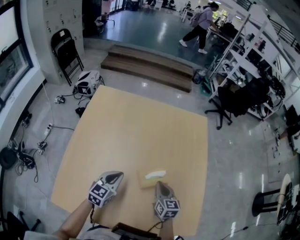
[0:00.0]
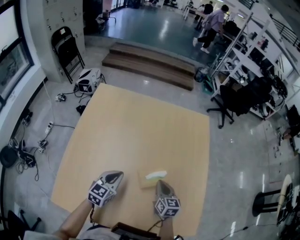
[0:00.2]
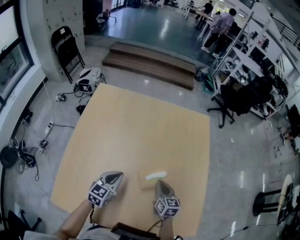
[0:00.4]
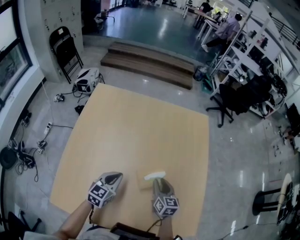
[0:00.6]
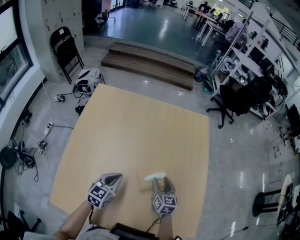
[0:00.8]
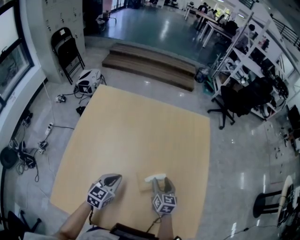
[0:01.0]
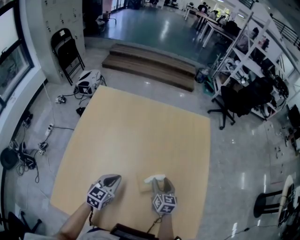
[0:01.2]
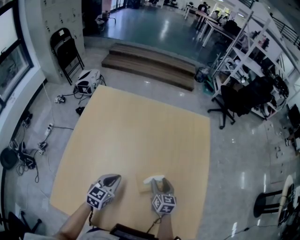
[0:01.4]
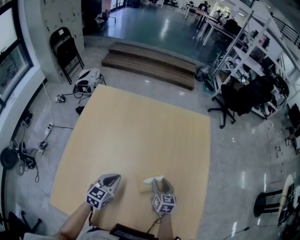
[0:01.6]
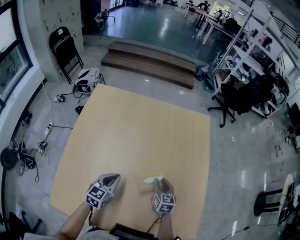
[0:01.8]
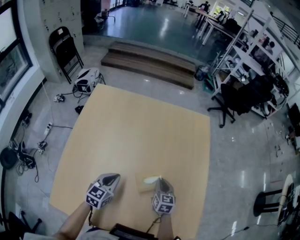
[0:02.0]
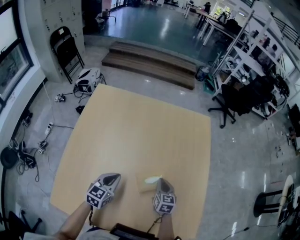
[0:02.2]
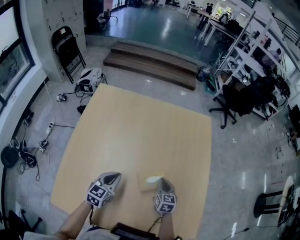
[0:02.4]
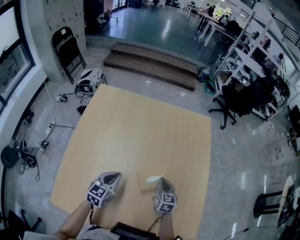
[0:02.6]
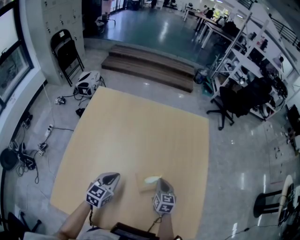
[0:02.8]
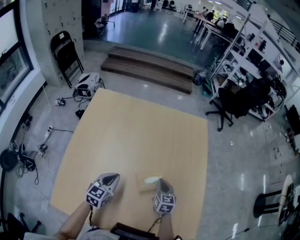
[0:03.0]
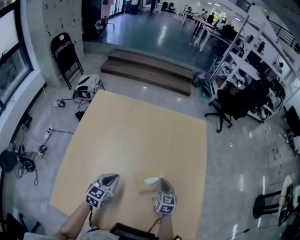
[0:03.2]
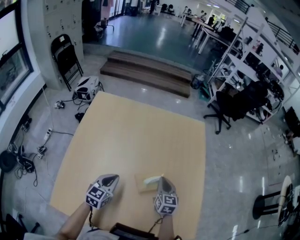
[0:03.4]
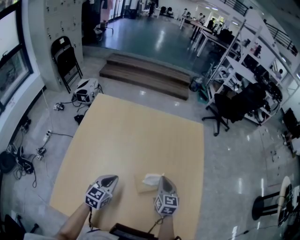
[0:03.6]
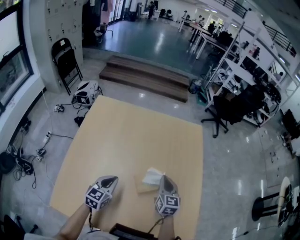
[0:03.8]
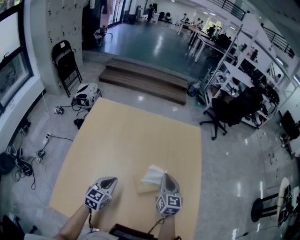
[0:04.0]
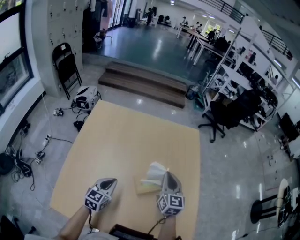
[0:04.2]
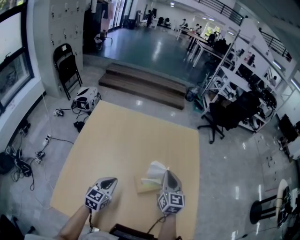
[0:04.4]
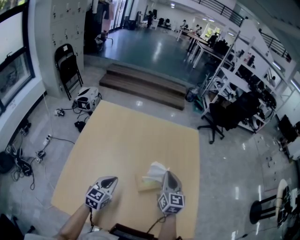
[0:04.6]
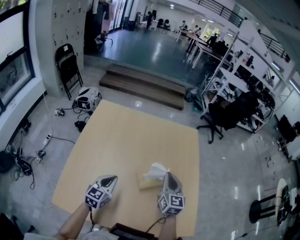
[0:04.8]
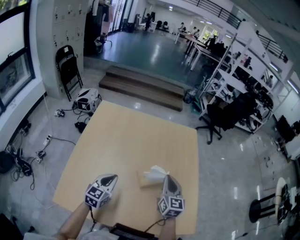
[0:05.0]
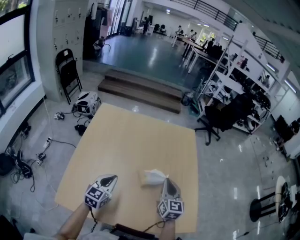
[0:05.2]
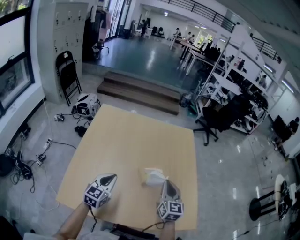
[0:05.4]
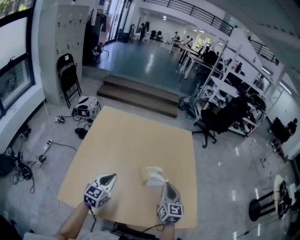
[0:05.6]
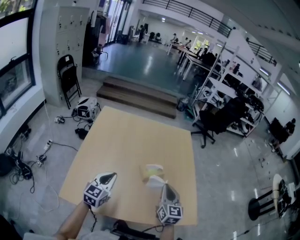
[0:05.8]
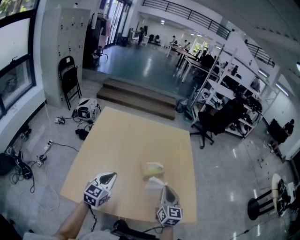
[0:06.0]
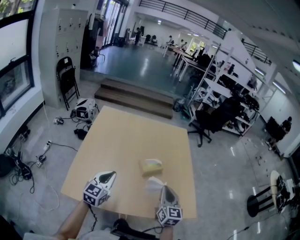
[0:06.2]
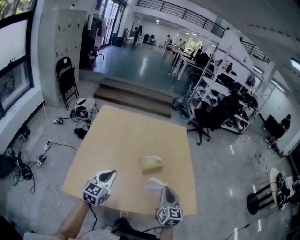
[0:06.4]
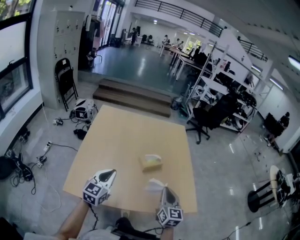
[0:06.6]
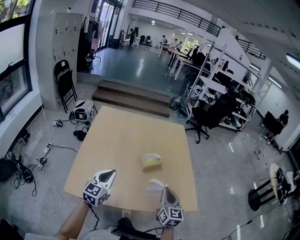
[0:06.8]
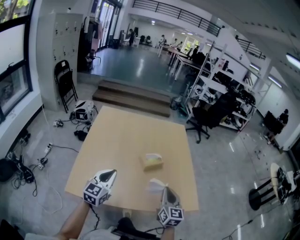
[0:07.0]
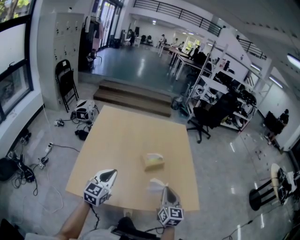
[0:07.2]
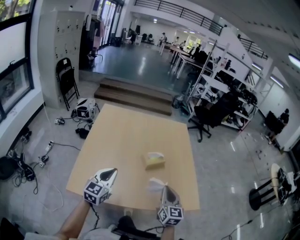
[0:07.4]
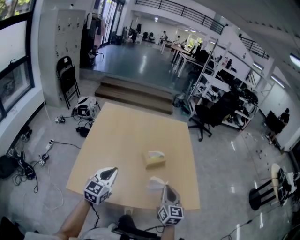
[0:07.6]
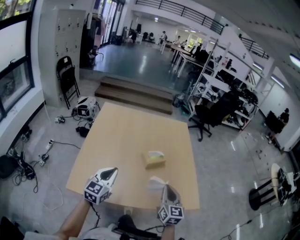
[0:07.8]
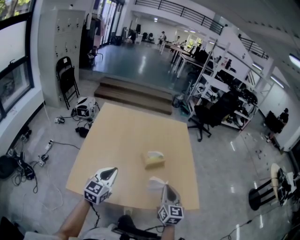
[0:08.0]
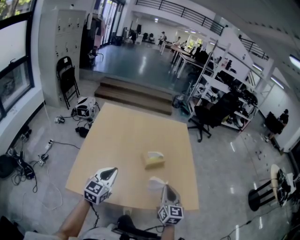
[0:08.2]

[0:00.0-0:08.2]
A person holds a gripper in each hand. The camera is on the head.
0:00.0 to 0:01.6: The right gripper heads downward, covering about 5 cm, and opens its fingers.
0:01.6 to 0:03.2: The right gripper closes.
0:03.2 to 0:05.0: The left gripper goes approximately 10 cm backward and upward. The right gripper travels upward by about 15 cm.
0:05.0 to 0:06.6: The left gripper moves backward and upward, roughly 15 cm. The right gripper goes some 20 cm backward.
0:06.6 to 0:08.2: The grippers stay close to where they were, moving slightly.

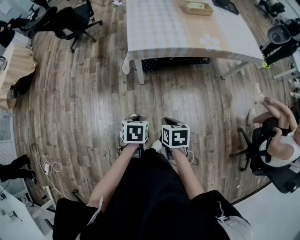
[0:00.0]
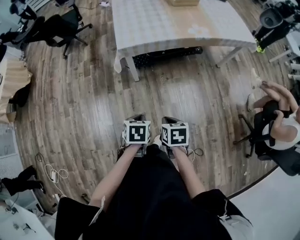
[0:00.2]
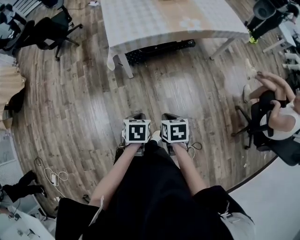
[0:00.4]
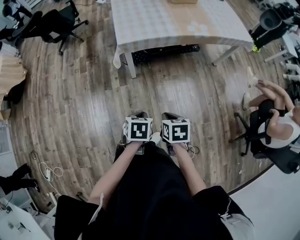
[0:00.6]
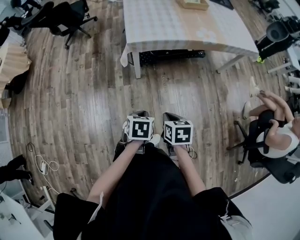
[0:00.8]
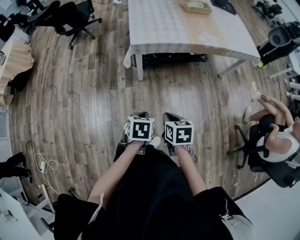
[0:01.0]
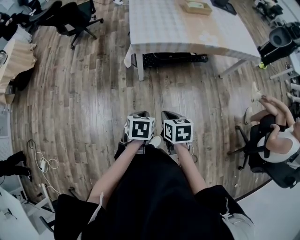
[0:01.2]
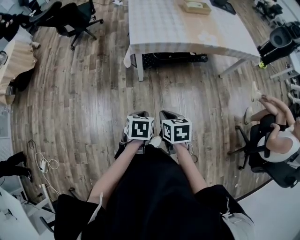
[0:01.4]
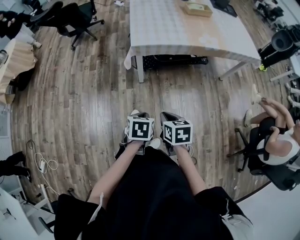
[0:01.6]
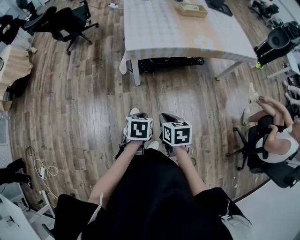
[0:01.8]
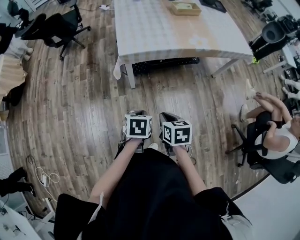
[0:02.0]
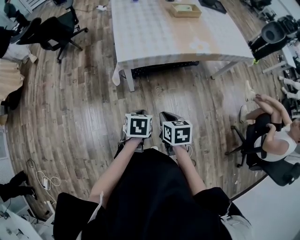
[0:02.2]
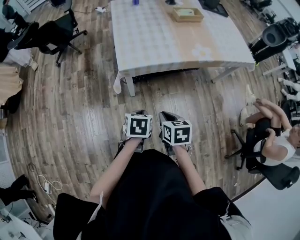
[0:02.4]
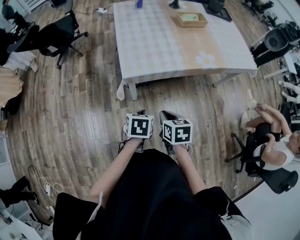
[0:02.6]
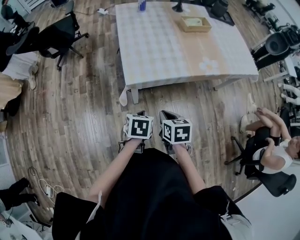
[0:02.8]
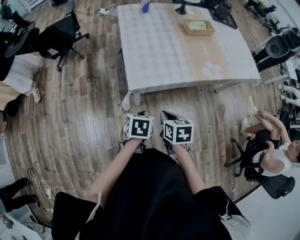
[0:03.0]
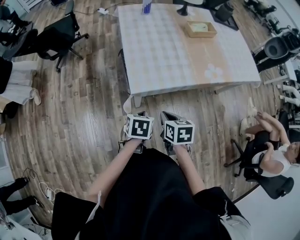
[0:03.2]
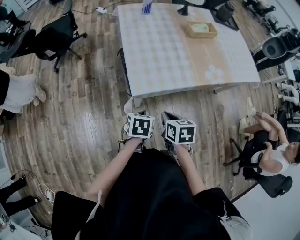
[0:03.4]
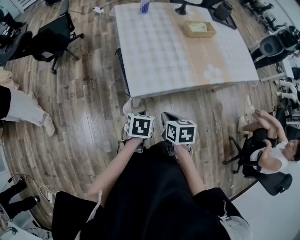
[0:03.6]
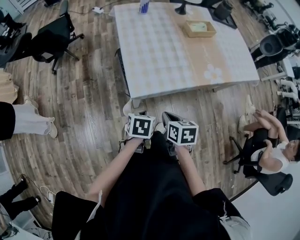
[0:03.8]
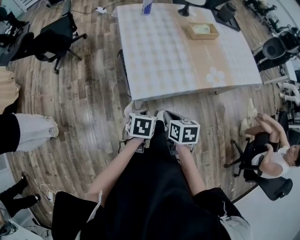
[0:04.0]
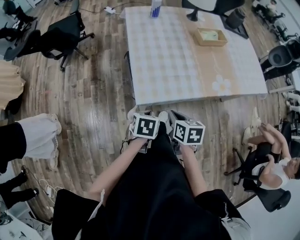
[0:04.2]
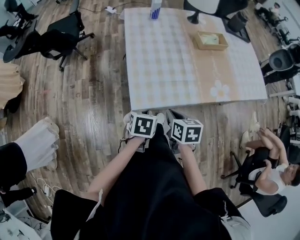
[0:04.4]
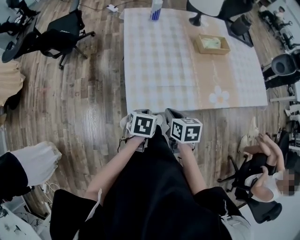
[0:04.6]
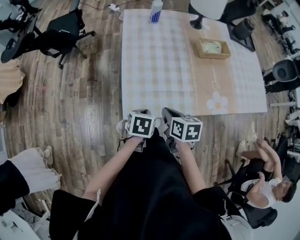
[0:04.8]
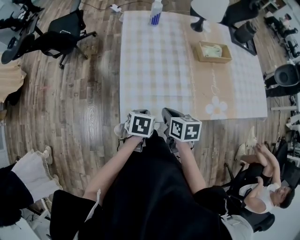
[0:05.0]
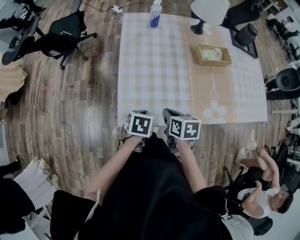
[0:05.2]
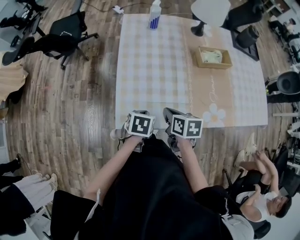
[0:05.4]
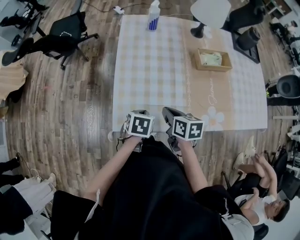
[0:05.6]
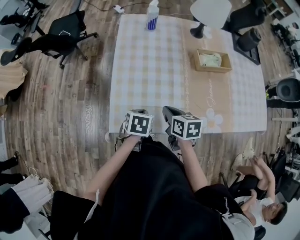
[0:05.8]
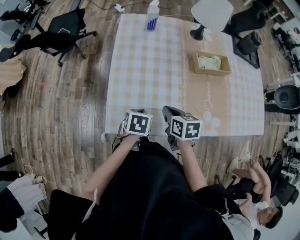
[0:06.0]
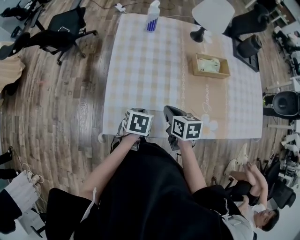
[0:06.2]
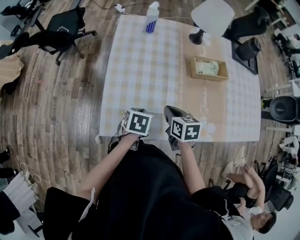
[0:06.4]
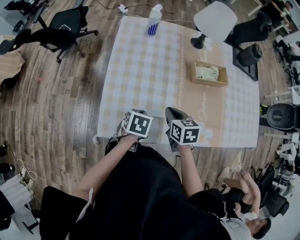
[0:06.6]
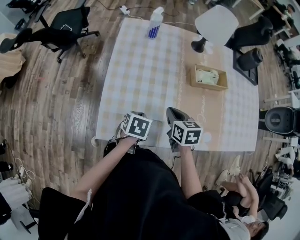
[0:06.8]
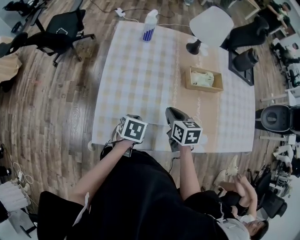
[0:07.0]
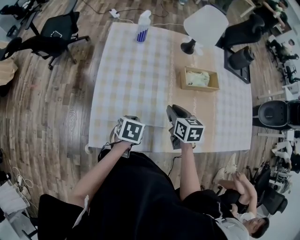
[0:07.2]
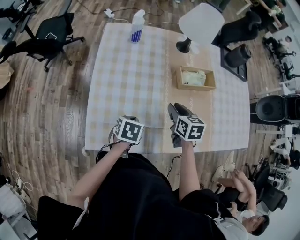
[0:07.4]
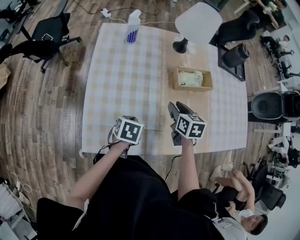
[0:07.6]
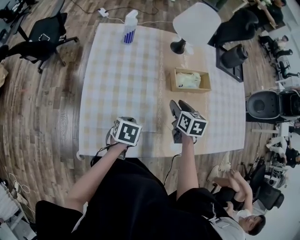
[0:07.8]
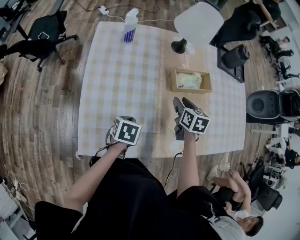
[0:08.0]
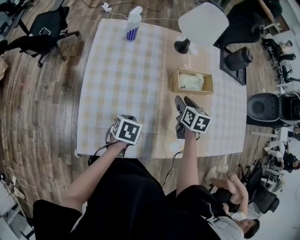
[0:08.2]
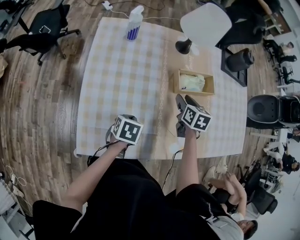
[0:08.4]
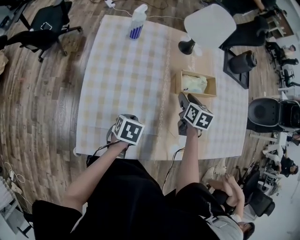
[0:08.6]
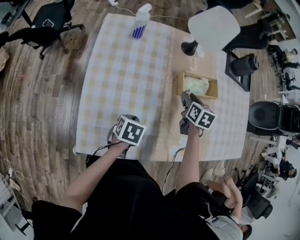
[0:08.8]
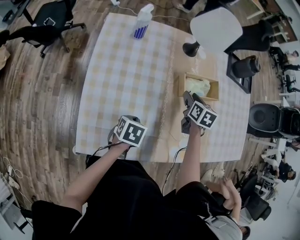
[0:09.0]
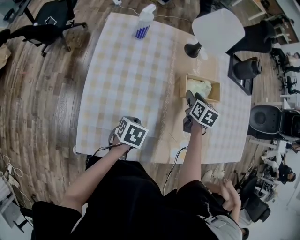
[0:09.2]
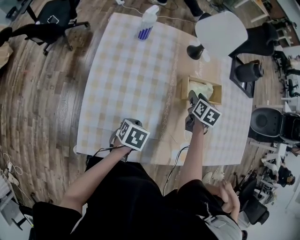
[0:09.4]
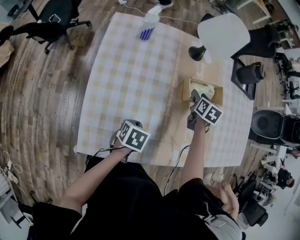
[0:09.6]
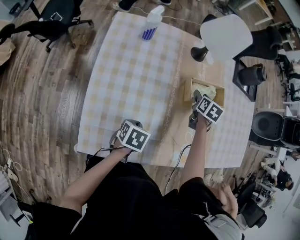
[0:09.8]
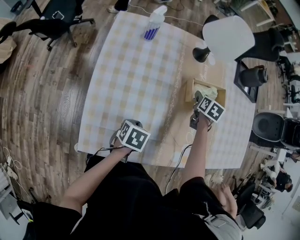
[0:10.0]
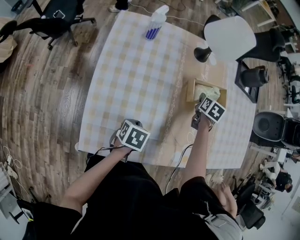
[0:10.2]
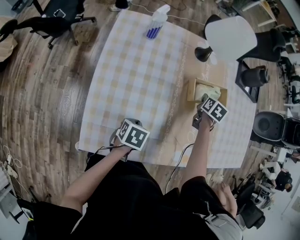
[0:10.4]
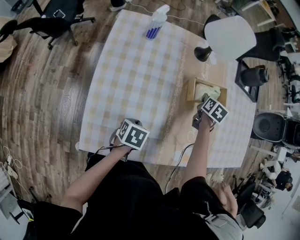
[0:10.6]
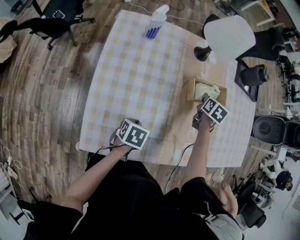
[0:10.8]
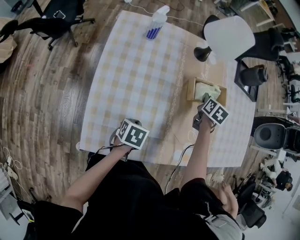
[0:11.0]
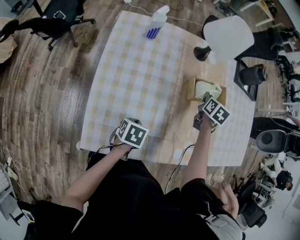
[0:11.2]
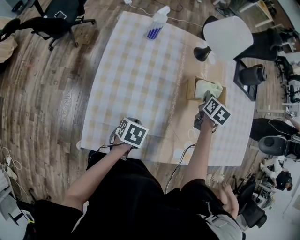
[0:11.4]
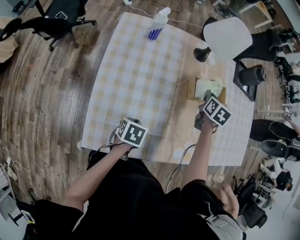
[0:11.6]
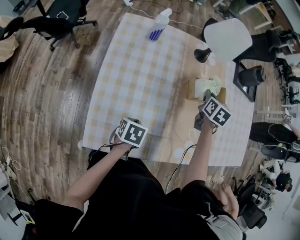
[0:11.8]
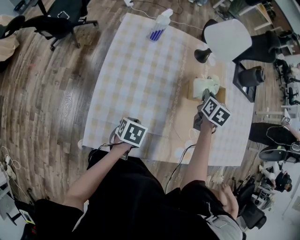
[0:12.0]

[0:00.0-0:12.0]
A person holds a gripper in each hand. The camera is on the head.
0:00.0 to 0:01.6: There are only small adjustments of the grippers.
0:01.6 to 0:03.0: Both grippers move forward, about 30 cm.
0:03.0 to 0:04.4: The grippers both shift forward by roughly 10 cm.
0:04.4 to 0:06.0: Both grippers travel together forward and downward, roughly 15 cm.
0:06.0 to 0:07.6: The right gripper heads forward and to the right, covering approximately 20 cm, and opens its fingers. Meanwhile the left gripper is displaced forward and to the right by approximately 10 cm.
0:07.6 to 0:09.0: The right gripper shifts some 15 cm forward.
0:09.0 to 0:10.4: The right gripper is displaced forward by approximately 5 cm, and closes up.
0:10.4 to 0:12.0: The right gripper heads upward, covering roughly 10 cm.

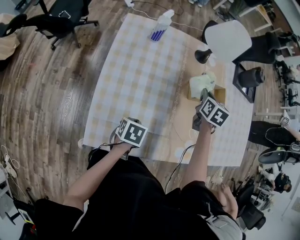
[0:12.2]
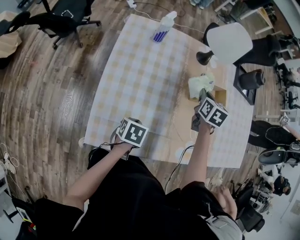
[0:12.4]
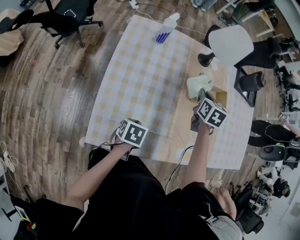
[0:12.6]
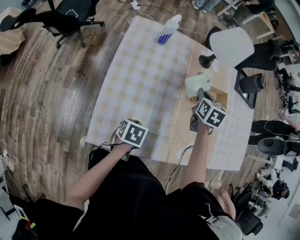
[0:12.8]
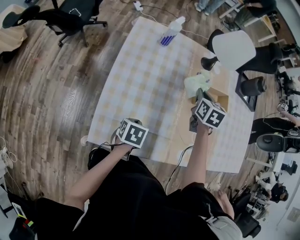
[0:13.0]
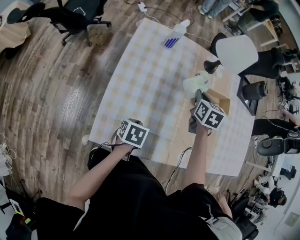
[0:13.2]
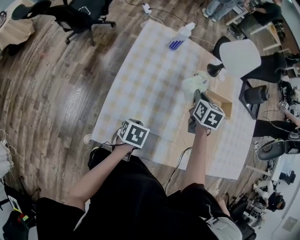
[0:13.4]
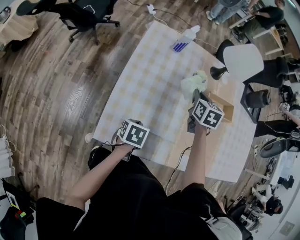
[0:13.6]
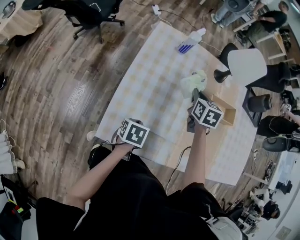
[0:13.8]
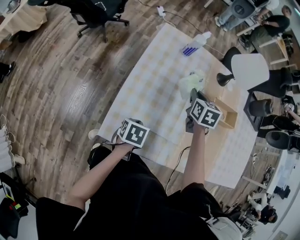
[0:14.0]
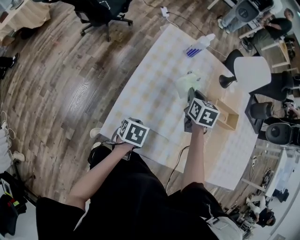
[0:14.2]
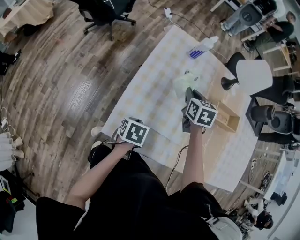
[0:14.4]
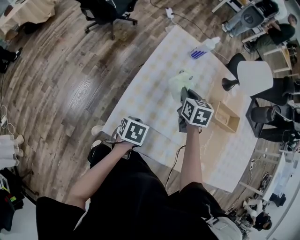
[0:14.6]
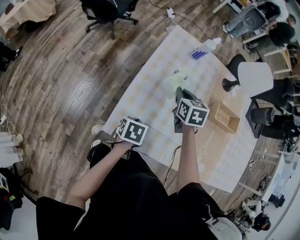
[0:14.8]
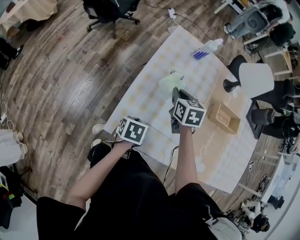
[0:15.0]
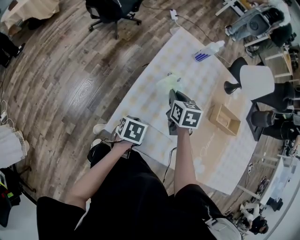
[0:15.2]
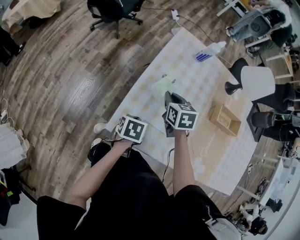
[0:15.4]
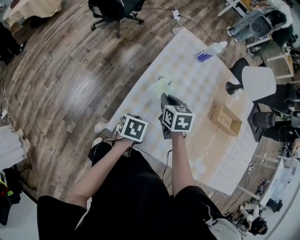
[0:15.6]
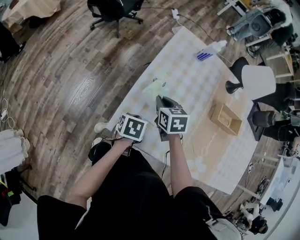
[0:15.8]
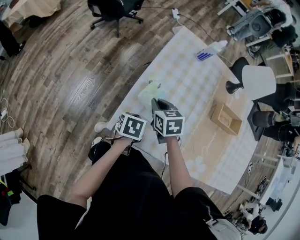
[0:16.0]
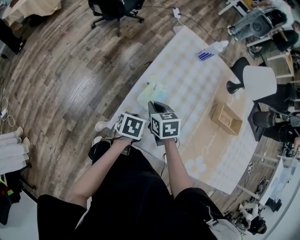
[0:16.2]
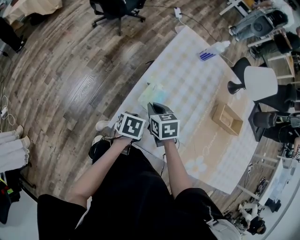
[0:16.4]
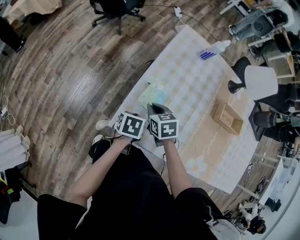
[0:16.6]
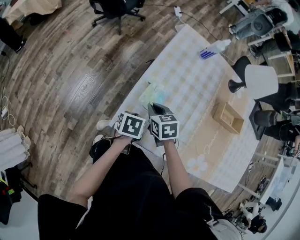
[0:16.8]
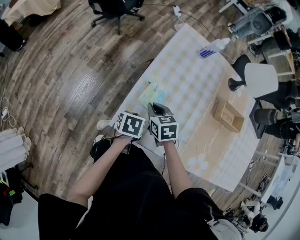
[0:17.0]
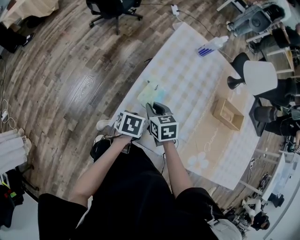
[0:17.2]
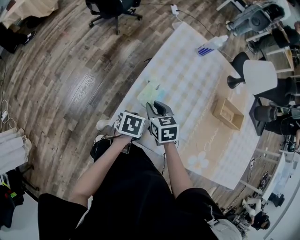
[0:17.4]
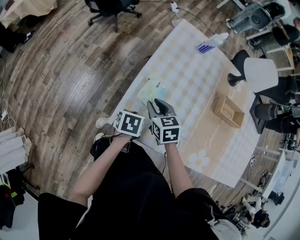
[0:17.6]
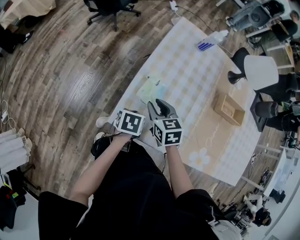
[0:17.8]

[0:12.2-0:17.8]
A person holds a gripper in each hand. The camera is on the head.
0:12.2 to 0:13.6: The left gripper shifts by about 5 cm. Meanwhile the right gripper shifts some 15 cm to the left.
0:13.6 to 0:15.0: The right gripper is displaced to the left and backward by roughly 20 cm. The left gripper heads to the left, covering some 5 cm.
0:15.0 to 0:16.4: The right gripper is displaced backward, to the left and downward by approximately 15 cm.
0:16.4 to 0:17.8: The right gripper opens its fingers.
